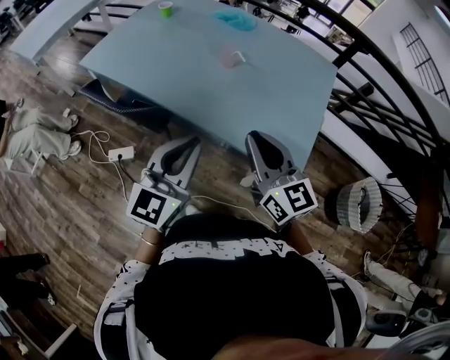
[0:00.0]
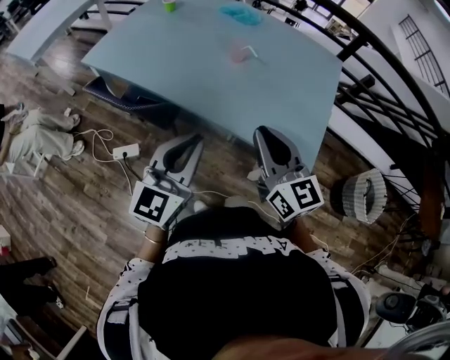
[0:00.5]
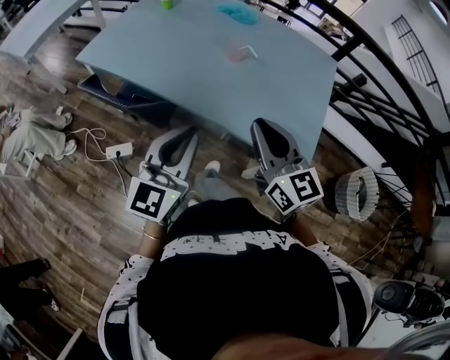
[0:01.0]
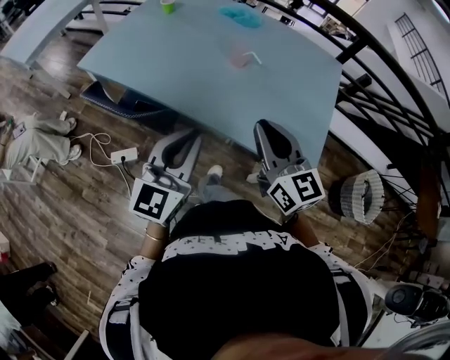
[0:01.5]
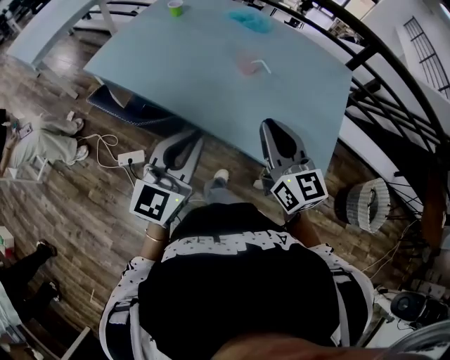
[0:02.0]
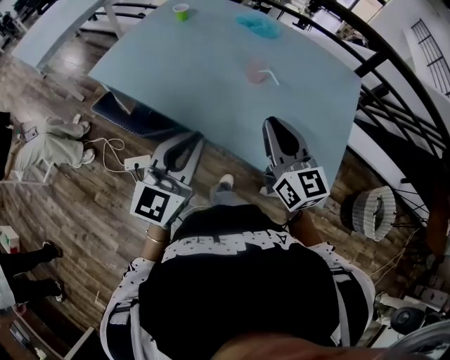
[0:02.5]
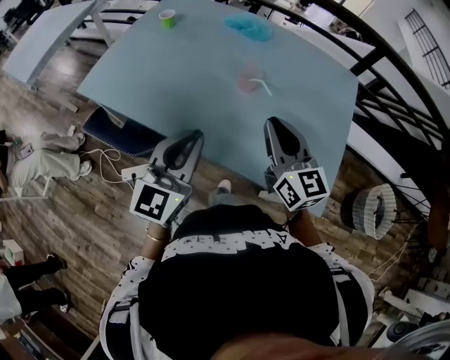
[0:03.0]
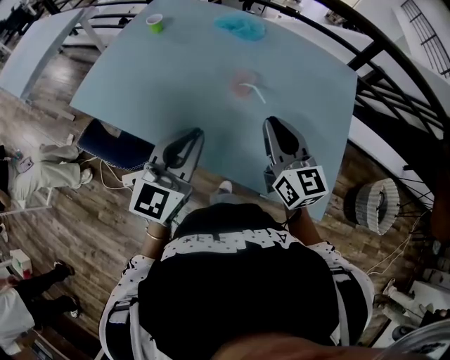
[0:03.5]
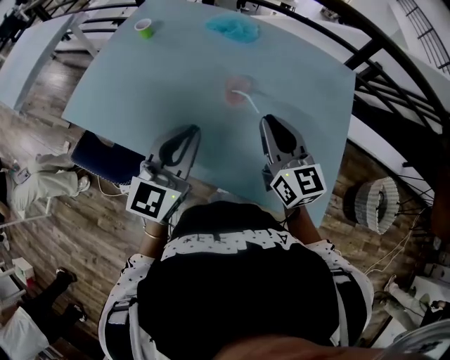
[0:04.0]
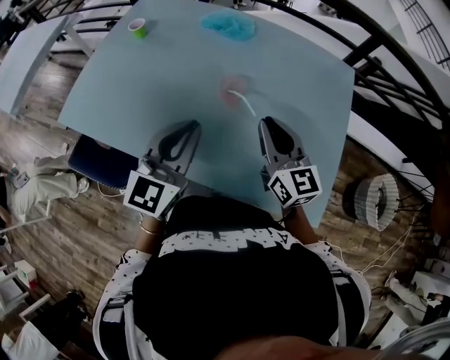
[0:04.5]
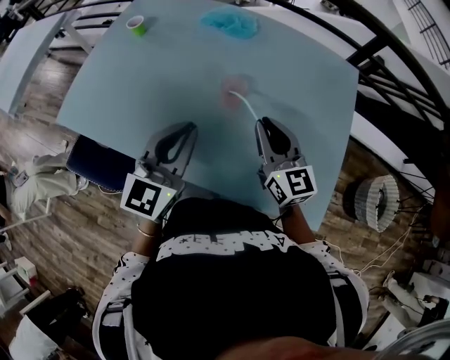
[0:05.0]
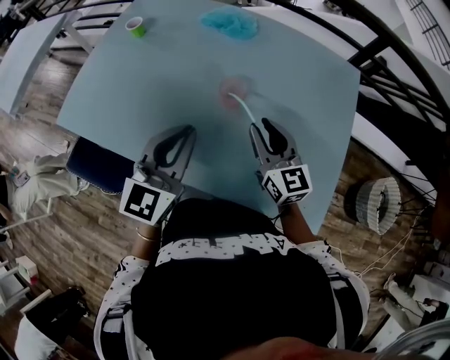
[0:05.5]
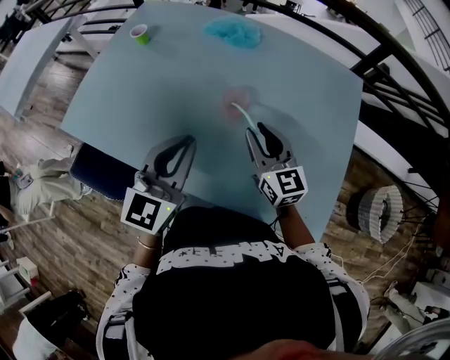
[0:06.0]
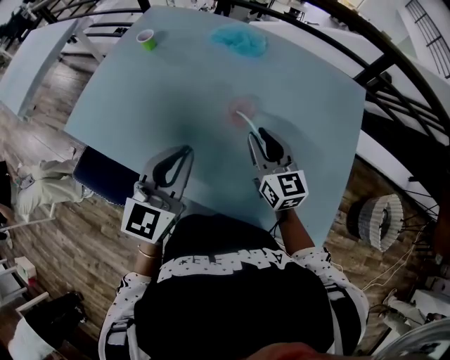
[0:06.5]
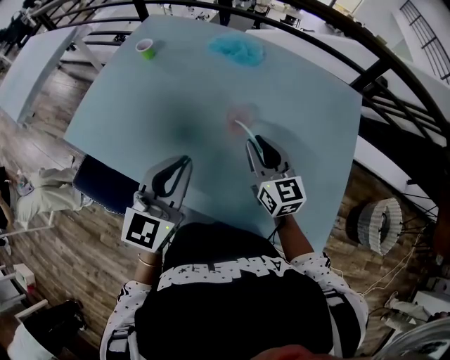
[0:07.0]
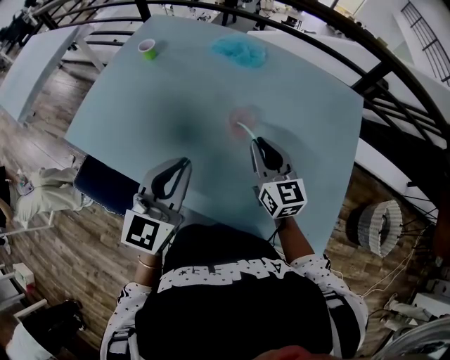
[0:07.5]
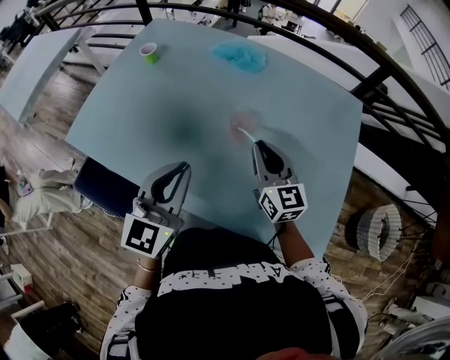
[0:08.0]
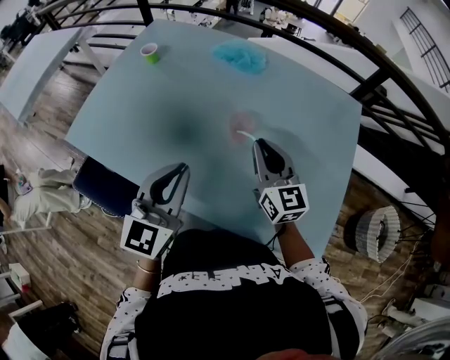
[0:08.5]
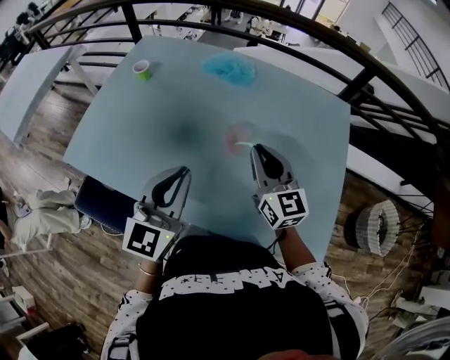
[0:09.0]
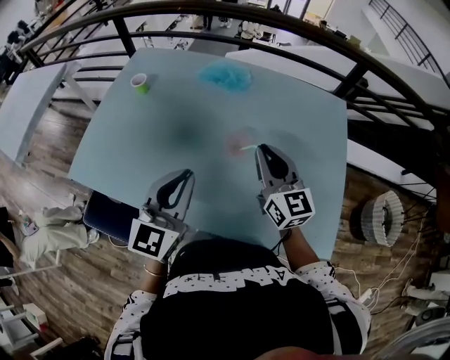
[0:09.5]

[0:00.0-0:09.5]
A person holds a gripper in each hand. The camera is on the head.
0:00.0 to 0:02.0: The left gripper is displaced to the left and forward by roughly 10 cm, while the right gripper shifts some 10 cm forward.
0:02.0 to 0:04.0: Both grippers travel together forward, approximately 20 cm.
0:04.0 to 0:05.5: The right gripper travels downward by about 5 cm.
0:05.5 to 0:07.5: The grippers make only small movements.
0:07.5 to 0:09.5: The right gripper goes approximately 10 cm upward.

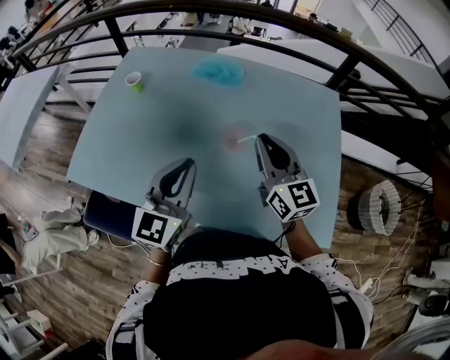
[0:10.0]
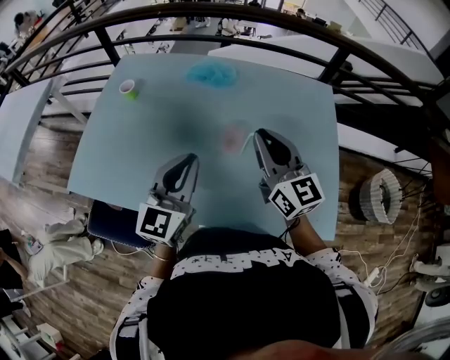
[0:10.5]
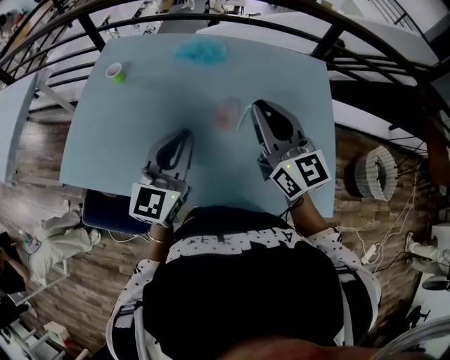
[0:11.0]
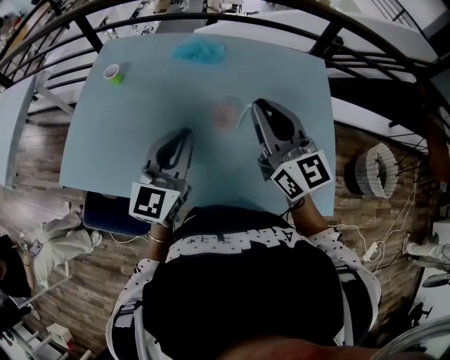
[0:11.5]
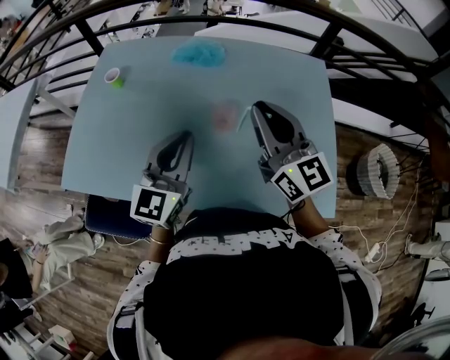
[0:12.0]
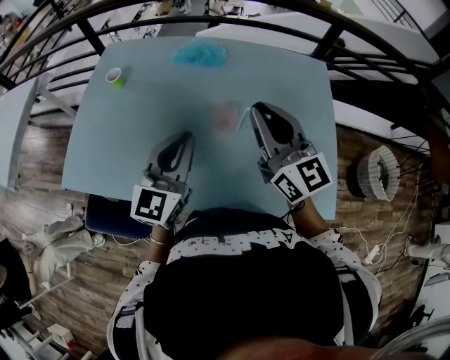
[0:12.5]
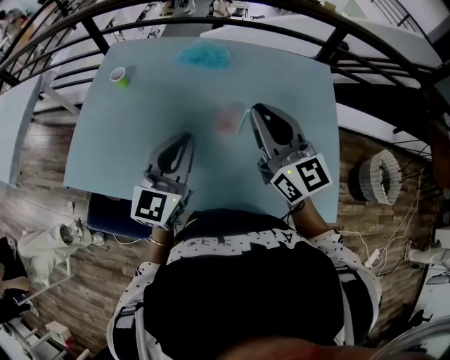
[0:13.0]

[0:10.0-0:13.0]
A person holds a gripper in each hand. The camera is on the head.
0:10.0 to 0:11.5: The right gripper heads upward, covering some 5 cm.
0:11.5 to 0:13.0: The grippers stay close to where they were, moving slightly.

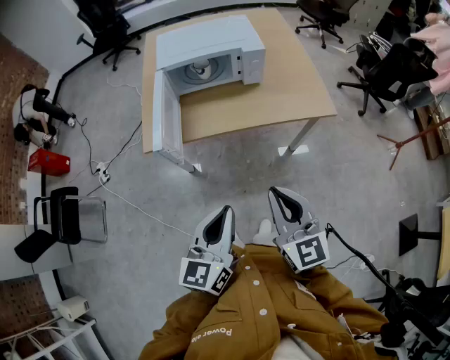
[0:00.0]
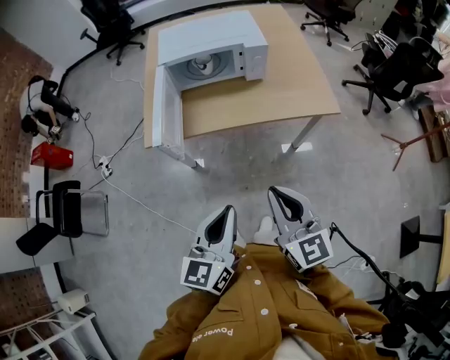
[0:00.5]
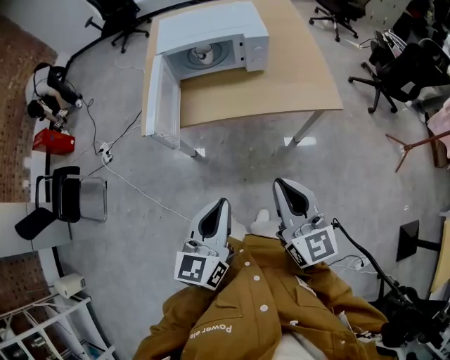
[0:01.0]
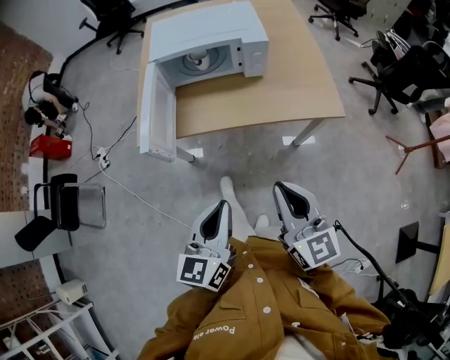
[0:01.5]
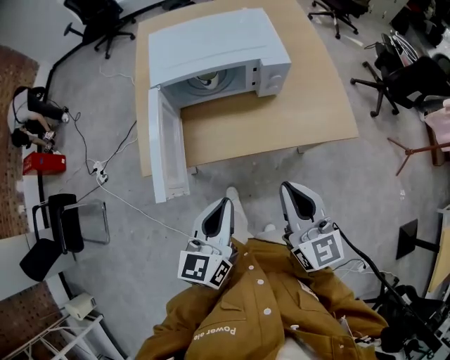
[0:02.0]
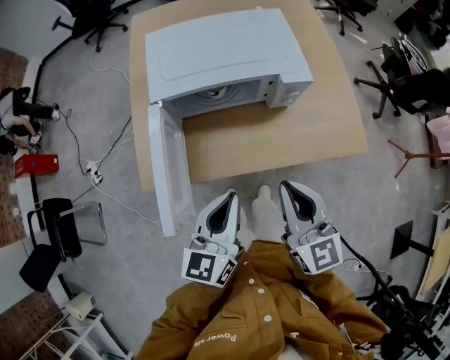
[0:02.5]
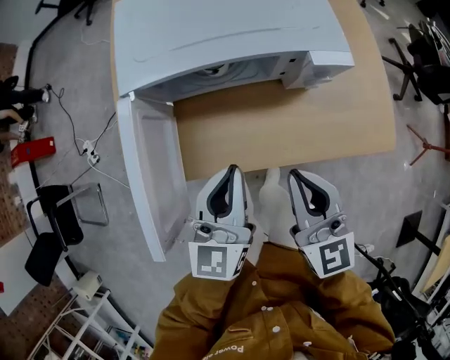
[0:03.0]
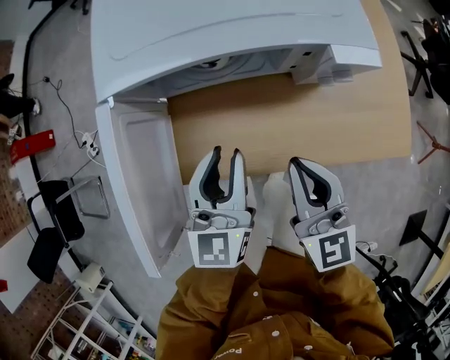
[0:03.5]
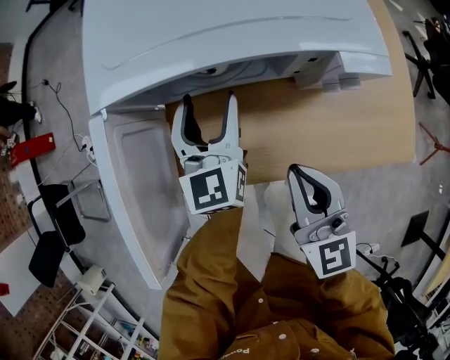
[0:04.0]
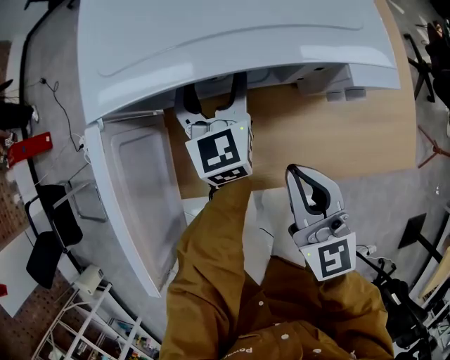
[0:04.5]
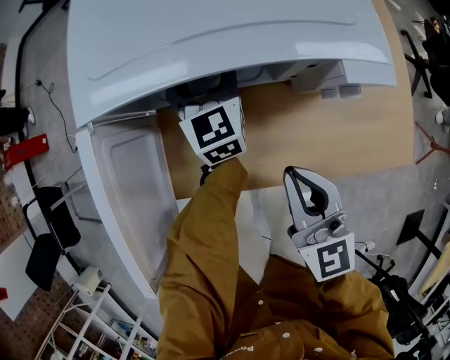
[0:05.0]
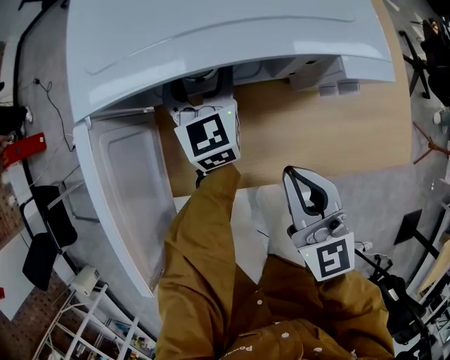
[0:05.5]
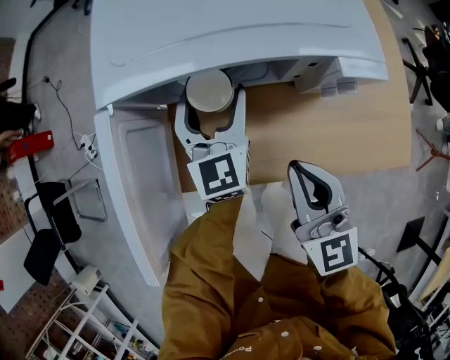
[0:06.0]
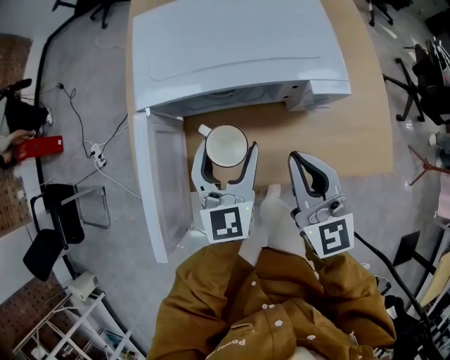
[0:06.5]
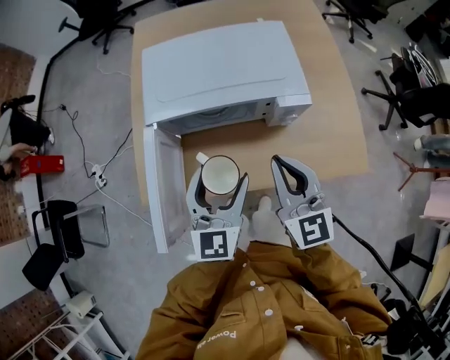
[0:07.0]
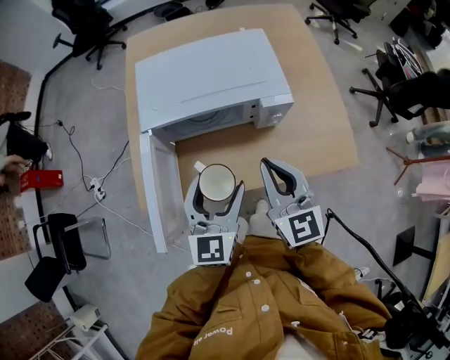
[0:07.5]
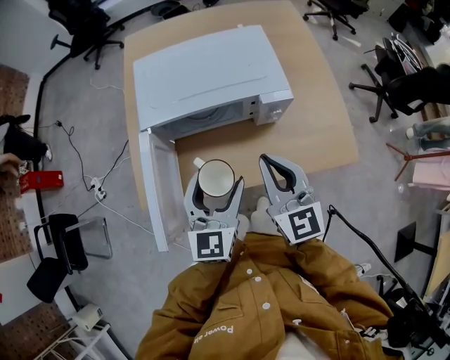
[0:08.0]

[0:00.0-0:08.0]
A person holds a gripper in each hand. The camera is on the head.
0:00.0 to 0:02.0: Both grippers move forward, some 20 cm.
0:02.0 to 0:04.0: Both grippers travel together forward and downward, approximately 35 cm. The left gripper turns by some 30 degrees, and opens.
0:04.0 to 0:06.0: The left gripper goes forward and returns, approximately 10 cm each way.
0:06.0 to 0:08.0: The right gripper moves upward, some 15 cm; the left gripper shifts about 25 cm backward and upward.

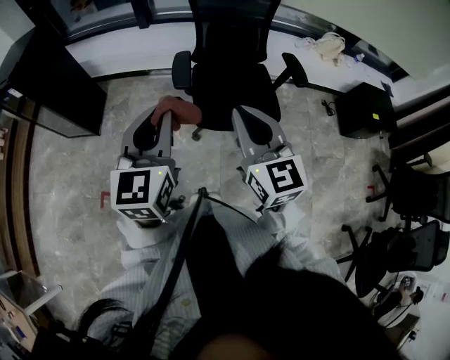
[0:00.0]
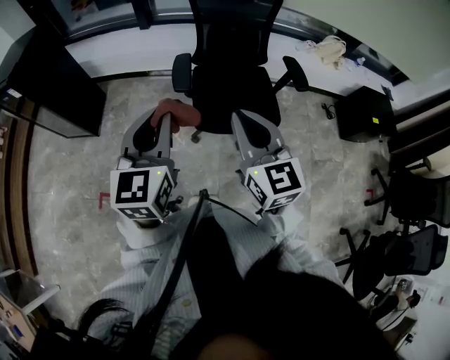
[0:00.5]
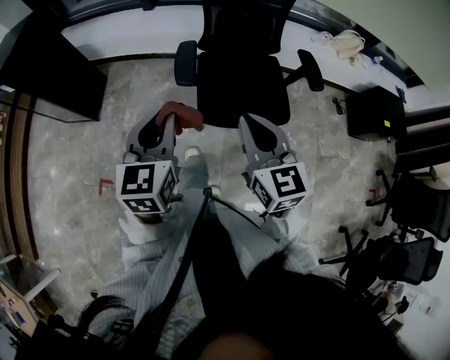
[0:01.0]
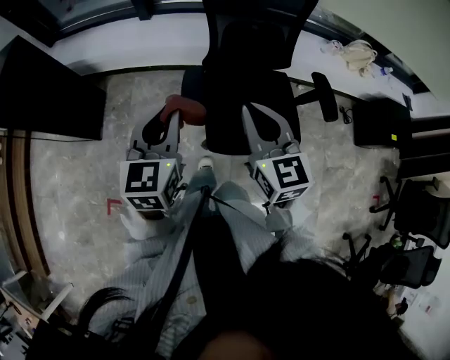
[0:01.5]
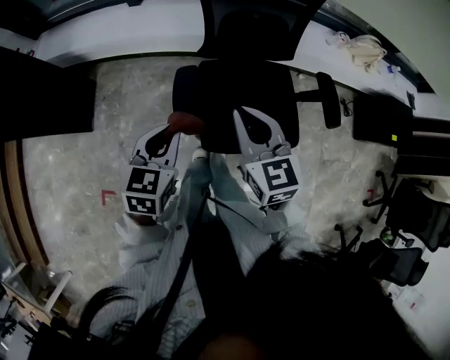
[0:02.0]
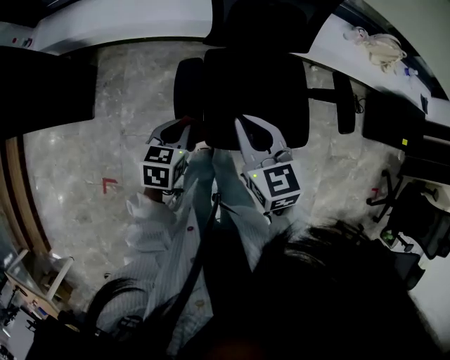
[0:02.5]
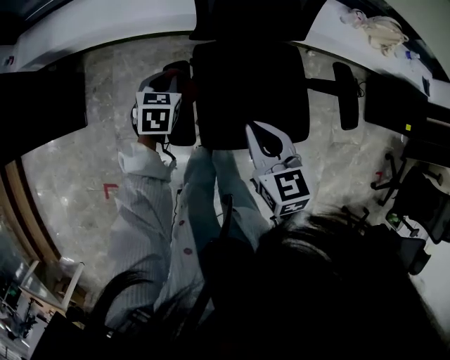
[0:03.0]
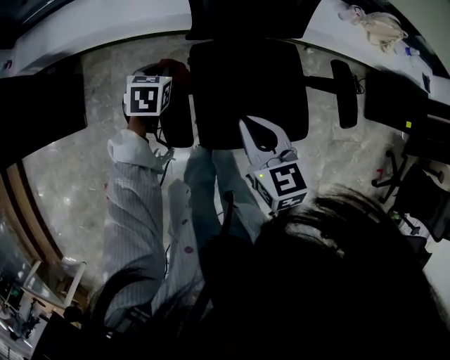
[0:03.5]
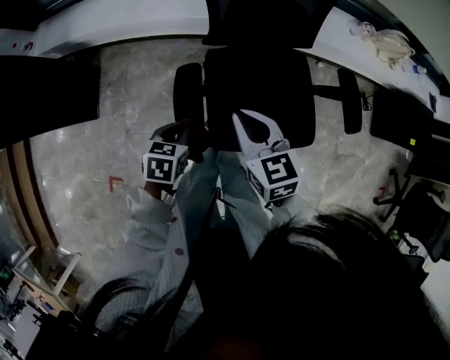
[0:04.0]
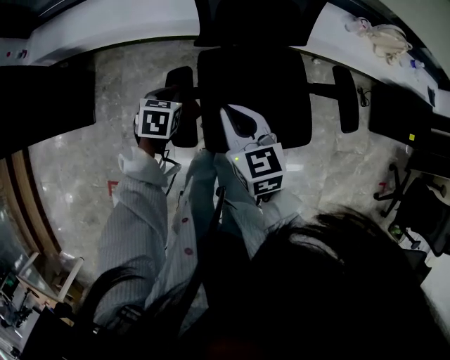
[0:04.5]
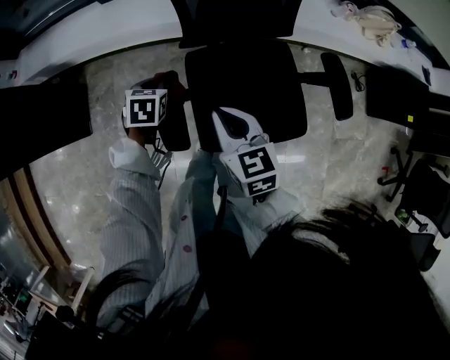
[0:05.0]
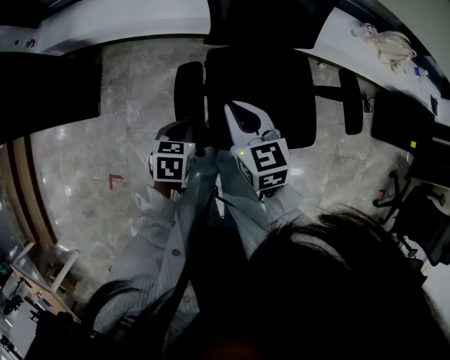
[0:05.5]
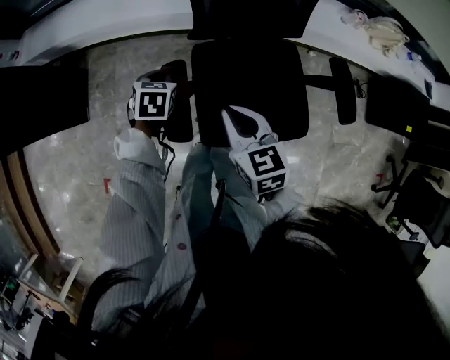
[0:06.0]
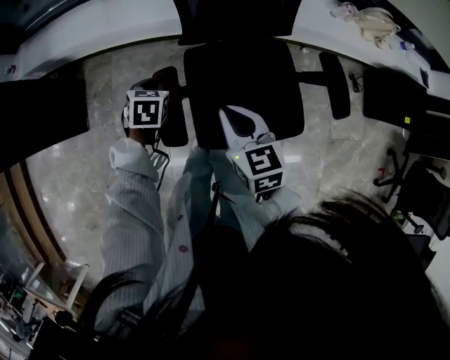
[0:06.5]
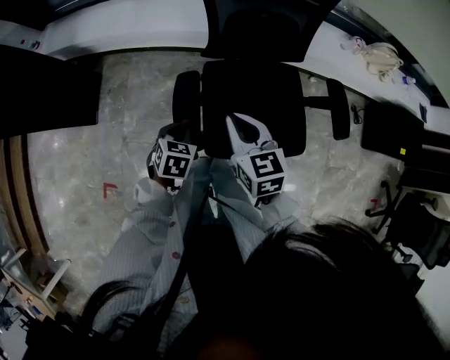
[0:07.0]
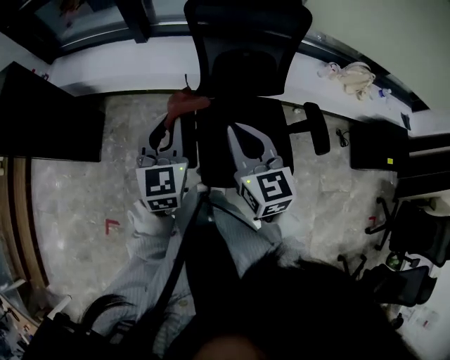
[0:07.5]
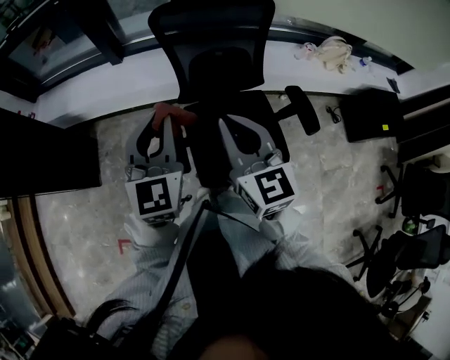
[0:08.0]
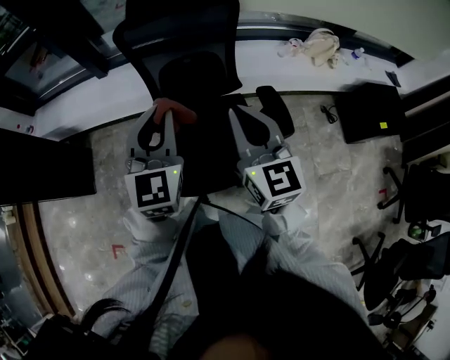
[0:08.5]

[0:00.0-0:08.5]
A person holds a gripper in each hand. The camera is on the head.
0:00.0 to 0:02.0: Both grippers travel together forward and downward, roughly 40 cm. The left gripper rotates approximately 30 degrees.
0:02.0 to 0:04.0: The left gripper is displaced downward by approximately 20 cm, travels forward and back again, about 20 cm each way, and rotates approximately 30 degrees. The right gripper moves downward, some 10 cm.
0:04.0 to 0:06.5: The left gripper goes forward and backward, roughly 15 cm each way, reversing 2 times.
0:06.5 to 0:08.5: The two grippers go some 35 cm upward and to the right. The right gripper swivels about 30 degrees, while the left gripper tilts its fingers roughly 50 degrees upward.
